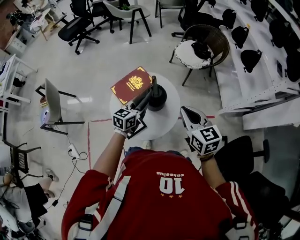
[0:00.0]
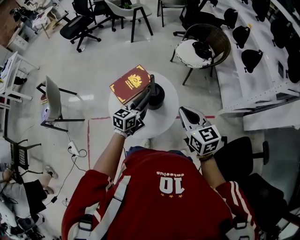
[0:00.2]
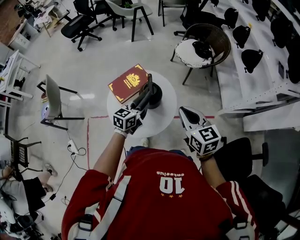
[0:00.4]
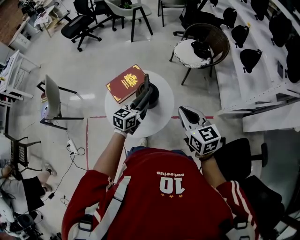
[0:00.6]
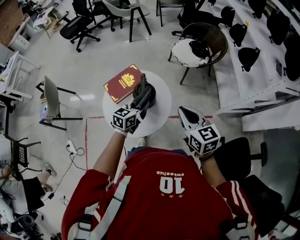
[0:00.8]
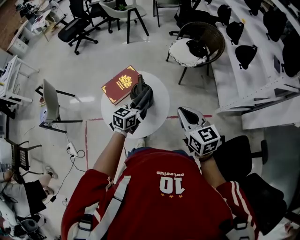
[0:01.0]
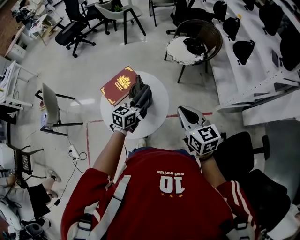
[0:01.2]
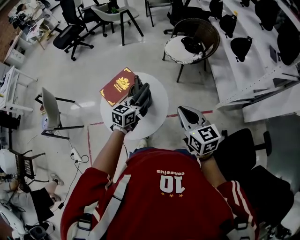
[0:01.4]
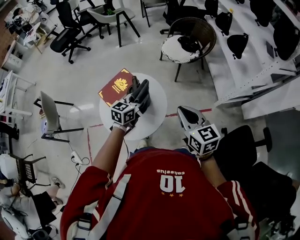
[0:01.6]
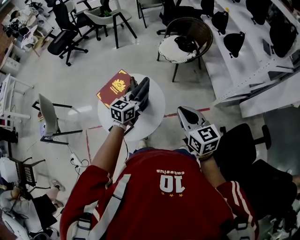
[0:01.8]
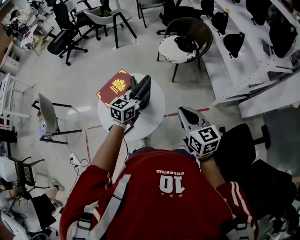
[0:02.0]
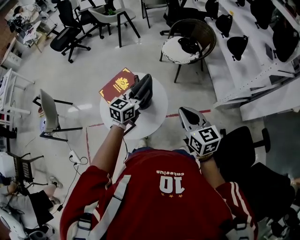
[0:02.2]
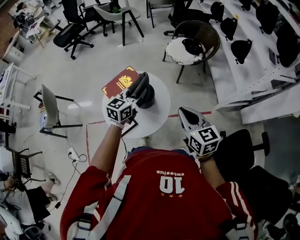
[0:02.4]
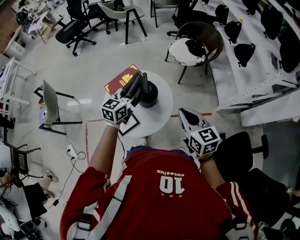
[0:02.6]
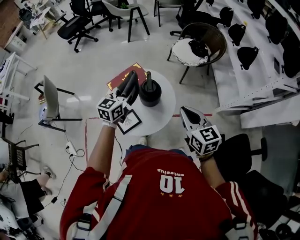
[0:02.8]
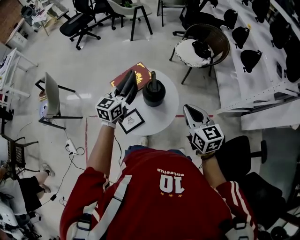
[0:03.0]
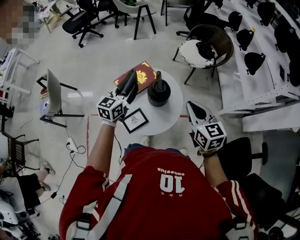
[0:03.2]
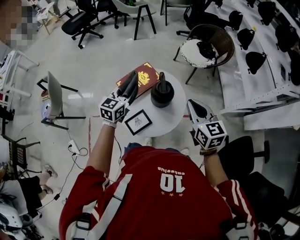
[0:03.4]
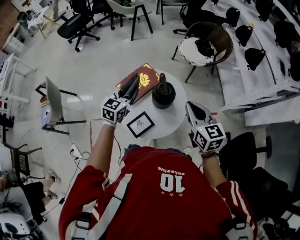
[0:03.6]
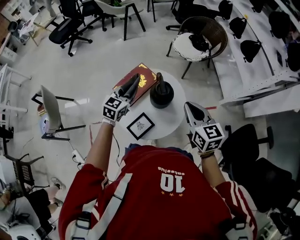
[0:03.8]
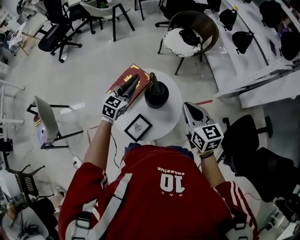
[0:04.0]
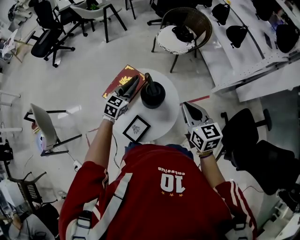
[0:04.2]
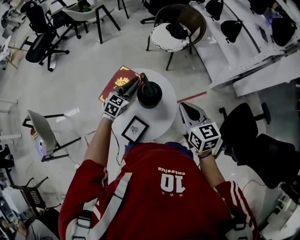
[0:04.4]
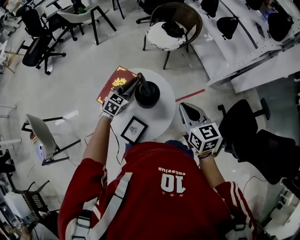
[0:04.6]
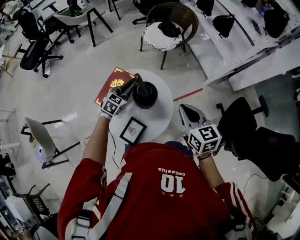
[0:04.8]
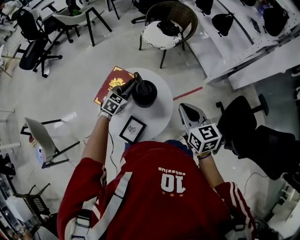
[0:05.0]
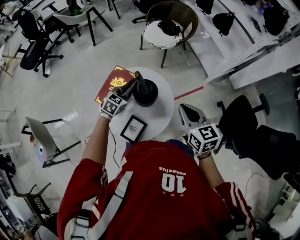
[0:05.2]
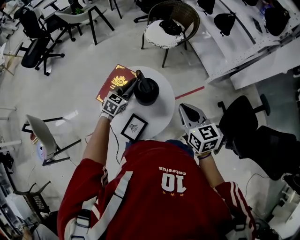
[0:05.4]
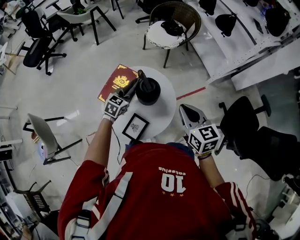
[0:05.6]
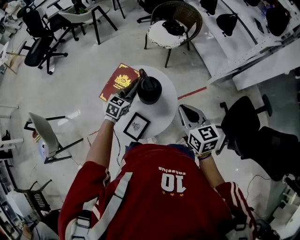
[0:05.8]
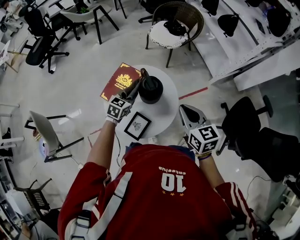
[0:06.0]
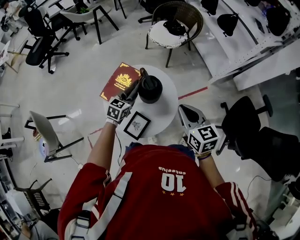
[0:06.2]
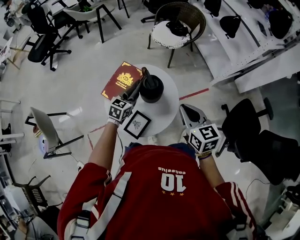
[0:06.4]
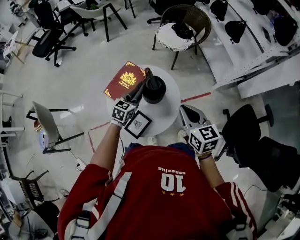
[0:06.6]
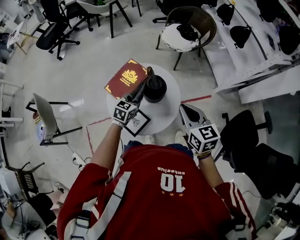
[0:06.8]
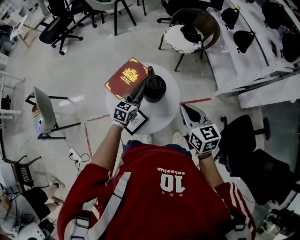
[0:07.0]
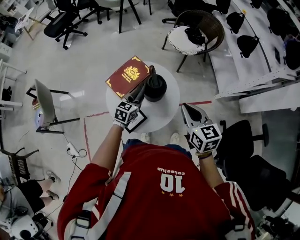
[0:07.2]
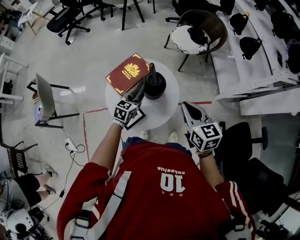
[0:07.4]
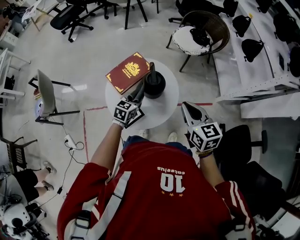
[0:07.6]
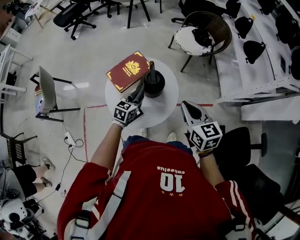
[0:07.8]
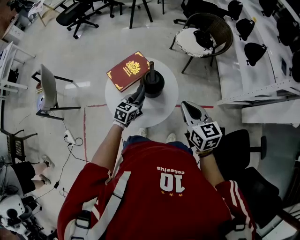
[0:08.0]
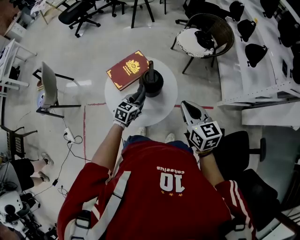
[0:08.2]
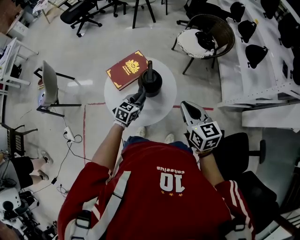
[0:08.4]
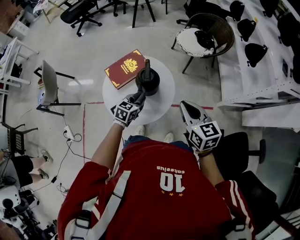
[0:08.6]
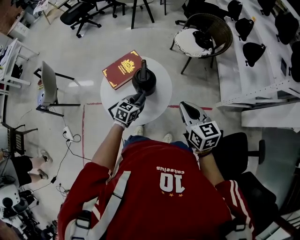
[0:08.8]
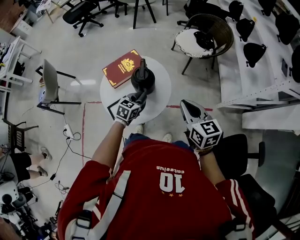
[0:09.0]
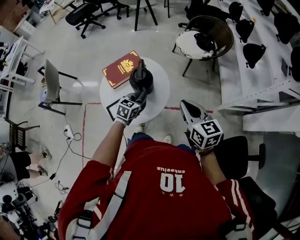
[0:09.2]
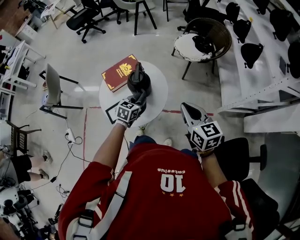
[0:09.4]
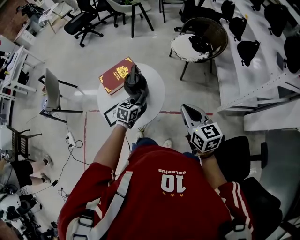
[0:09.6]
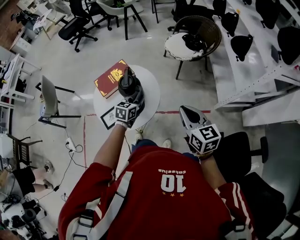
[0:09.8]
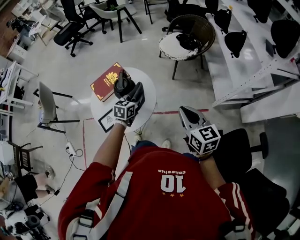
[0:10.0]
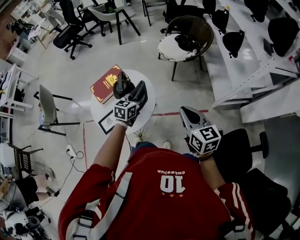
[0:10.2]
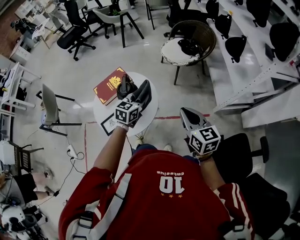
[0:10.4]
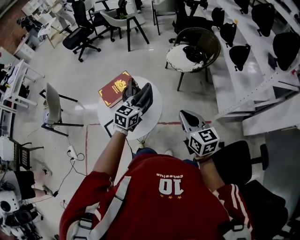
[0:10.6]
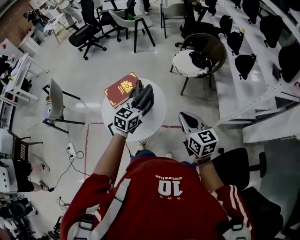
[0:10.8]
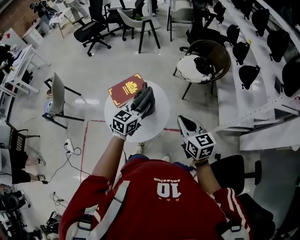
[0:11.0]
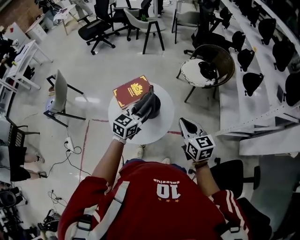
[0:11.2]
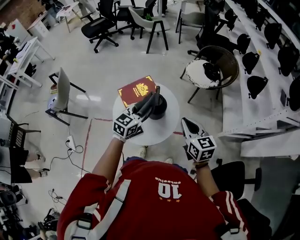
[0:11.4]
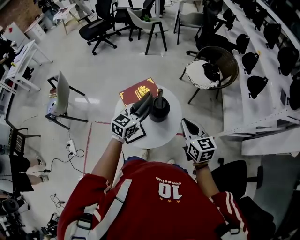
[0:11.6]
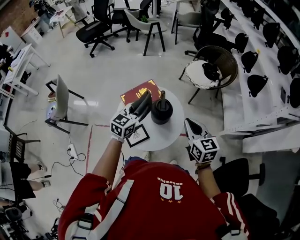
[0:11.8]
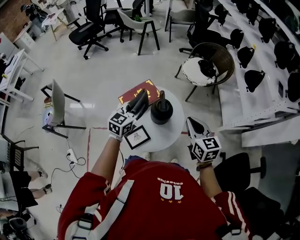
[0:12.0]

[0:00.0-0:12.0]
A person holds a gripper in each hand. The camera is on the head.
0:00.0 to 0:01.6: Both grippers travel together to the right, approximately 10 cm.
0:01.6 to 0:03.0: The right gripper moves to the left, about 5 cm. Meanwhile the left gripper goes roughly 15 cm to the left.
0:03.0 to 0:04.4: The right gripper changes place by some 5 cm. Meanwhile the left gripper heads downward and forward, covering approximately 15 cm, and swivels approximately 40 degrees.
0:04.4 to 0:06.0: The grippers stay close to where they were, moving slightly.
0:06.0 to 0:07.6: The left gripper shifts some 5 cm backward, and changes its angle by roughly 20 degrees.
0:07.6 to 0:09.0: The two grippers go approximately 10 cm to the right.
0:09.0 to 0:10.4: The right gripper travels to the right by roughly 10 cm; the left gripper is displaced to the right and upward by approximately 15 cm.
0:10.4 to 0:12.0: Both grippers travel together to the left, roughly 20 cm.

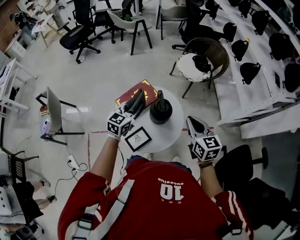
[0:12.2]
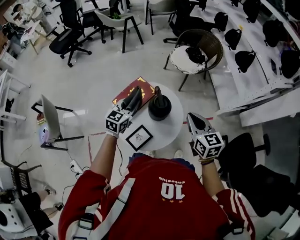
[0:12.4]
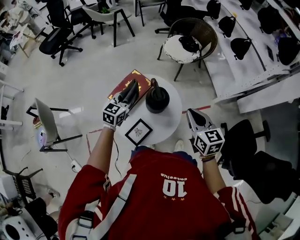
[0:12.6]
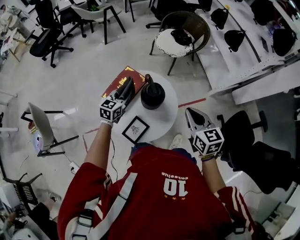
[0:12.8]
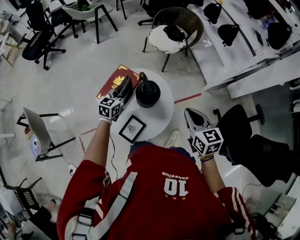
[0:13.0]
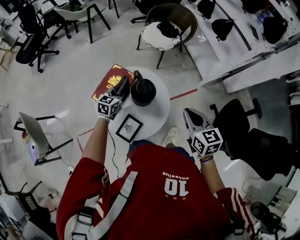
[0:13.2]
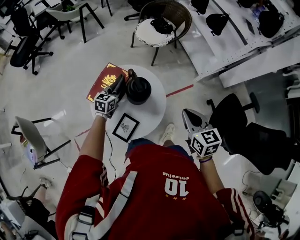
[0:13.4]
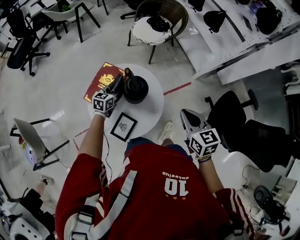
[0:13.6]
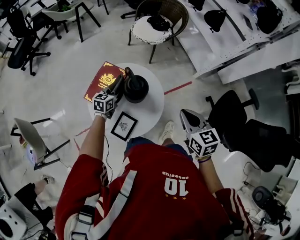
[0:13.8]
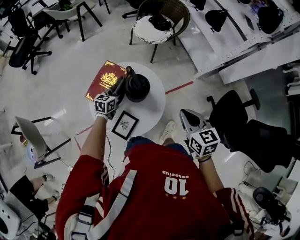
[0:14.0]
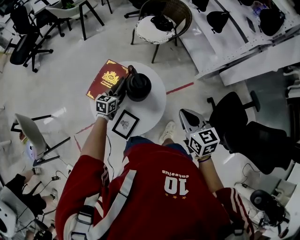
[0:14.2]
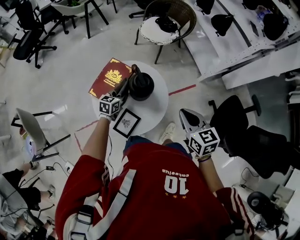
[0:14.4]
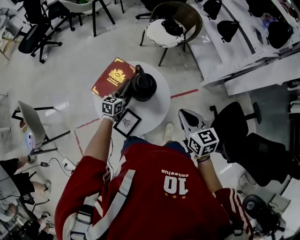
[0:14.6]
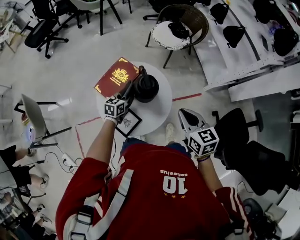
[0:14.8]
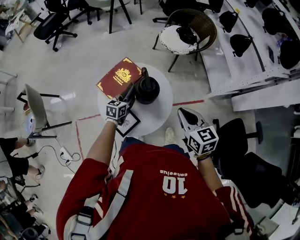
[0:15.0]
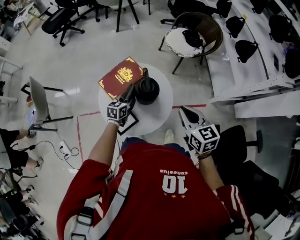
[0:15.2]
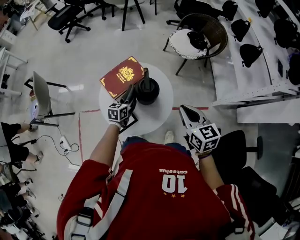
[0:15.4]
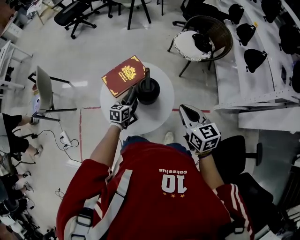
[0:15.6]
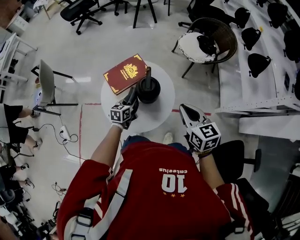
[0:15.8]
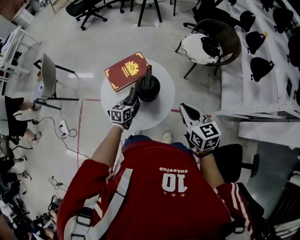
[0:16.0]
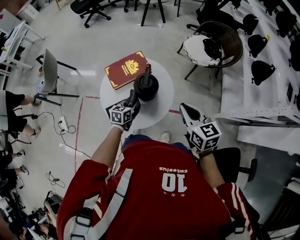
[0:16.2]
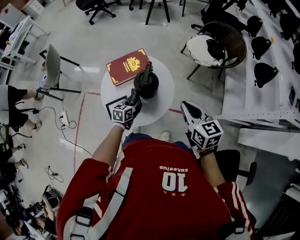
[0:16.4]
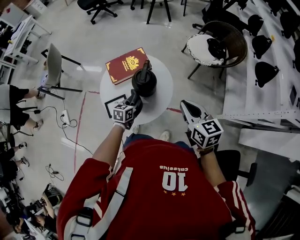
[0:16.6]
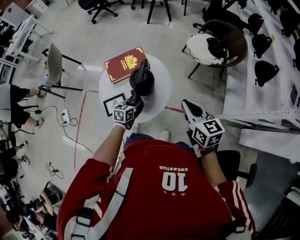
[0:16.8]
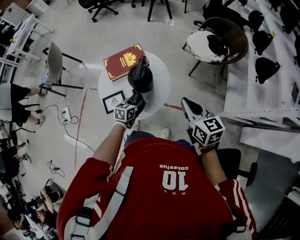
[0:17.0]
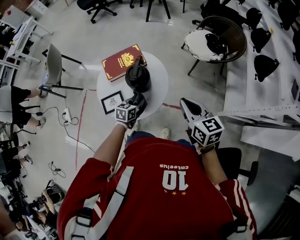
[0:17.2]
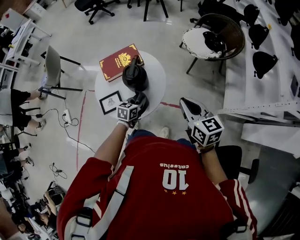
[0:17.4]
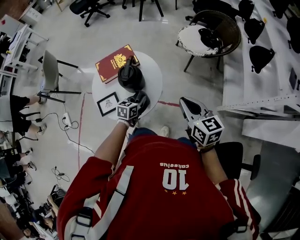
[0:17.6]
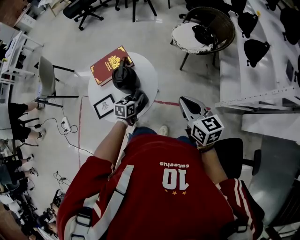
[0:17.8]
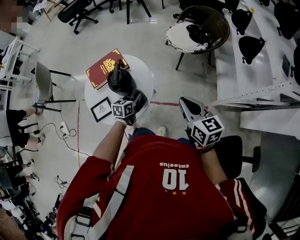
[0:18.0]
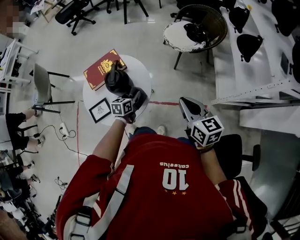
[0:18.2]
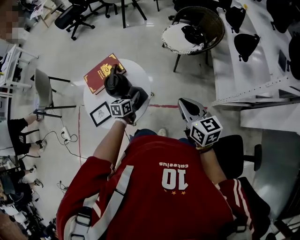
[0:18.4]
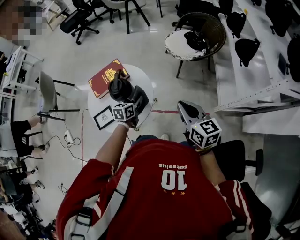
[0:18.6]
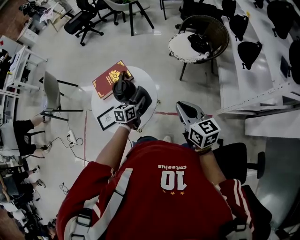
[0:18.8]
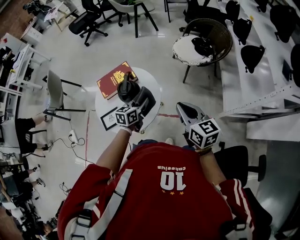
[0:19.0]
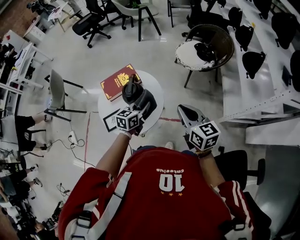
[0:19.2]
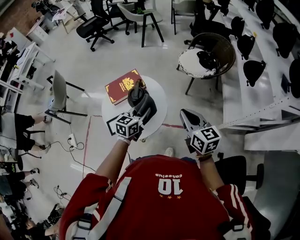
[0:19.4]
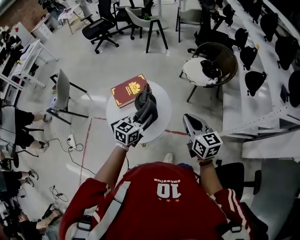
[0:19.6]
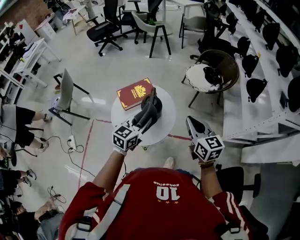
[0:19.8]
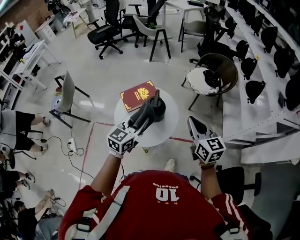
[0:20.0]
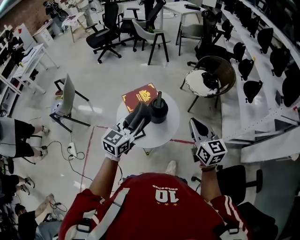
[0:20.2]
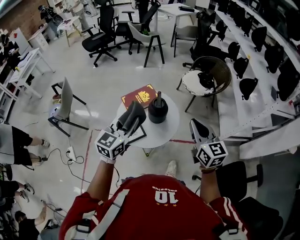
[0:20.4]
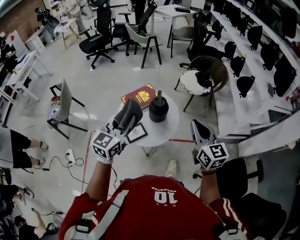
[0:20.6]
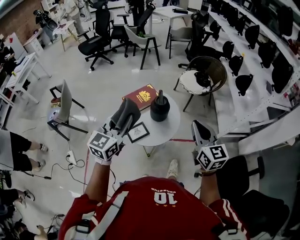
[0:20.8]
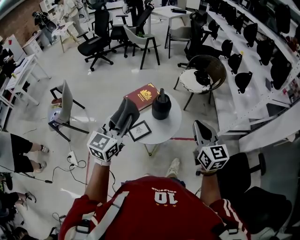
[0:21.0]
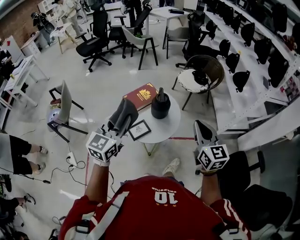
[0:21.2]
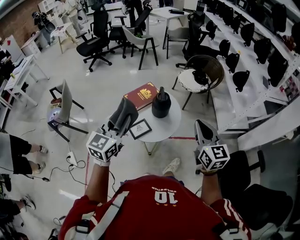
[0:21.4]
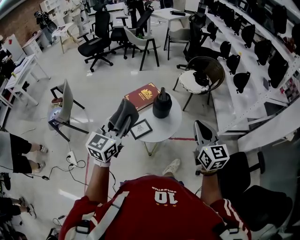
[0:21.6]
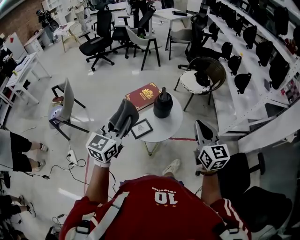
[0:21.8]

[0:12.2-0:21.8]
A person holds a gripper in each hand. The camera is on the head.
0:12.2 to 0:13.8: The left gripper travels downward by some 20 cm, and swivels approximately 20 degrees, while the right gripper is displaced backward and to the right by some 10 cm, and swivels approximately 20 degrees.
0:13.8 to 0:15.4: The right gripper changes place by roughly 10 cm, and swivels approximately 30 degrees; the left gripper moves some 5 cm, and swivels about 30 degrees.
0:15.4 to 0:17.0: The right gripper goes approximately 10 cm to the right. The left gripper moves to the right and backward, about 15 cm.
0:17.0 to 0:18.6: The left gripper moves to the right and forward, approximately 10 cm; the right gripper travels to the right by about 10 cm.
0:18.6 to 0:20.2: The right gripper is displaced to the left and upward by roughly 20 cm. The left gripper is displaced upward, to the left and backward by about 35 cm, and rotates about 30 degrees.
0:20.2 to 0:21.8: The right gripper goes roughly 15 cm backward. The left gripper shifts about 20 cm backward, to the left and upward.

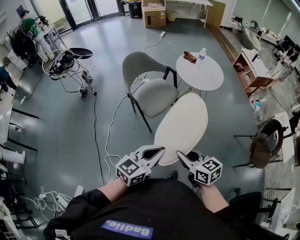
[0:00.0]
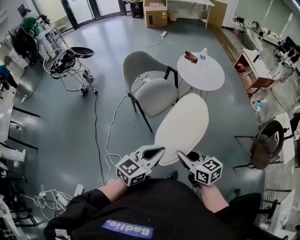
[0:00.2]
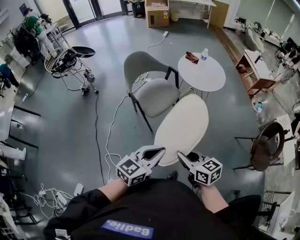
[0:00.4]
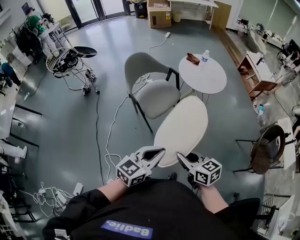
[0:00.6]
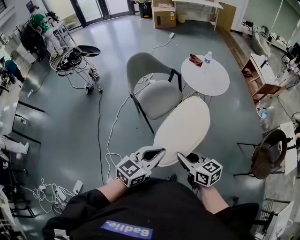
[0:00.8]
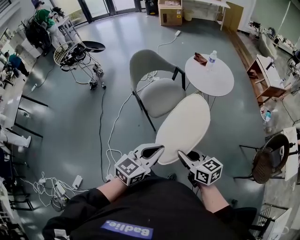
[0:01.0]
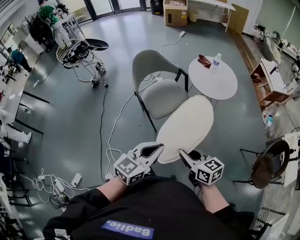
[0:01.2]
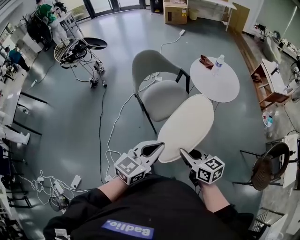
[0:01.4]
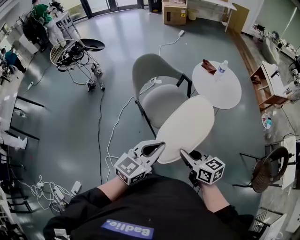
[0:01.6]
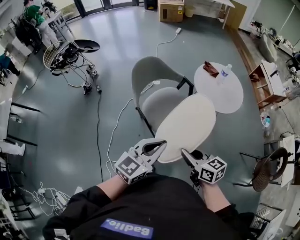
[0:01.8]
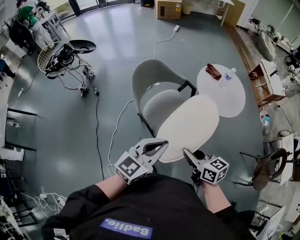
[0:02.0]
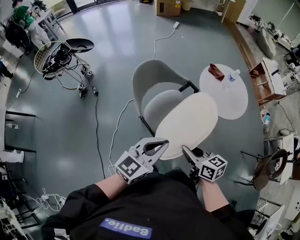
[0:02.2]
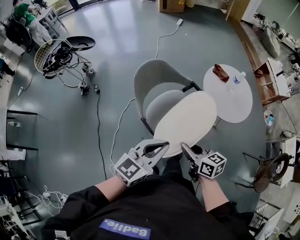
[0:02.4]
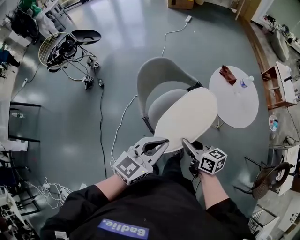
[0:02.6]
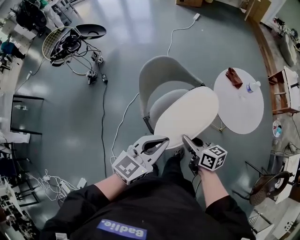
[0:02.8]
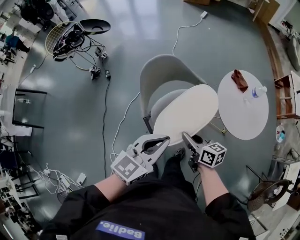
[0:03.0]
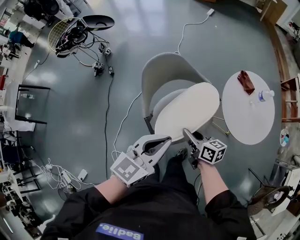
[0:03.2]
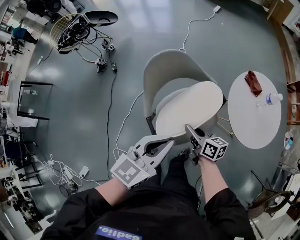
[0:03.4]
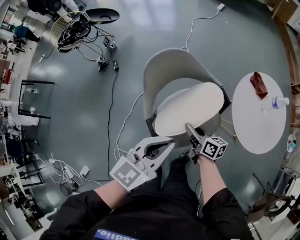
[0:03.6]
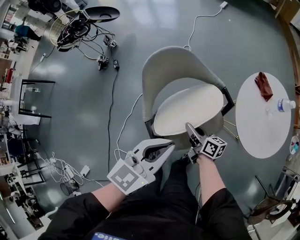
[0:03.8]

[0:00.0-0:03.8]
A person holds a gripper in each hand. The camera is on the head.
0:00.0 to 0:01.2: The two grippers go some 5 cm forward.
0:01.2 to 0:02.6: Both grippers travel together forward, some 35 cm.
0:02.6 to 0:03.8: The left gripper travels forward and downward by roughly 15 cm. Meanwhile the right gripper moves downward and forward, roughly 25 cm, and rotates roughly 20 degrees.
